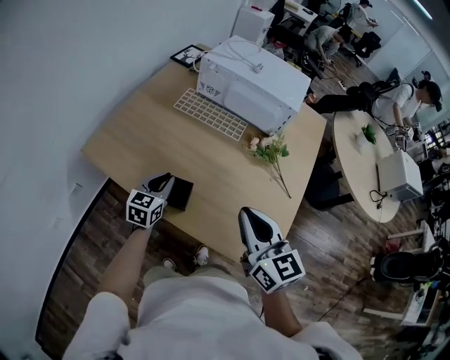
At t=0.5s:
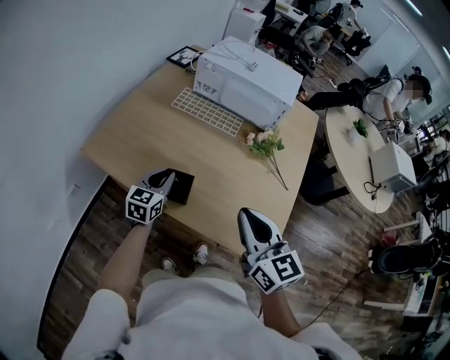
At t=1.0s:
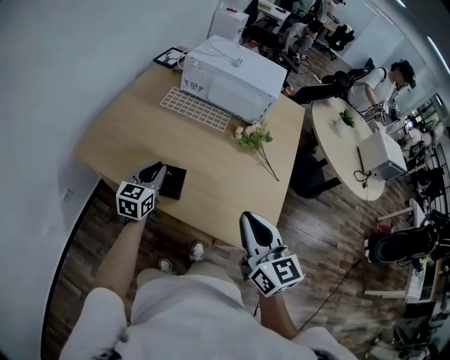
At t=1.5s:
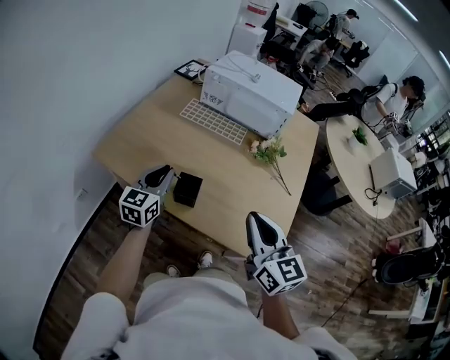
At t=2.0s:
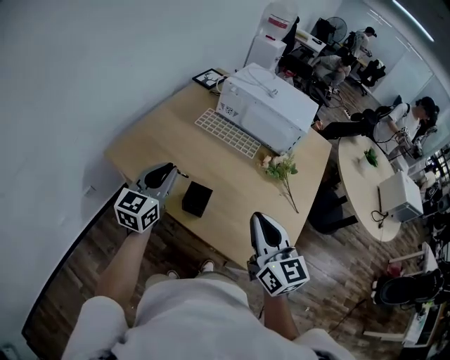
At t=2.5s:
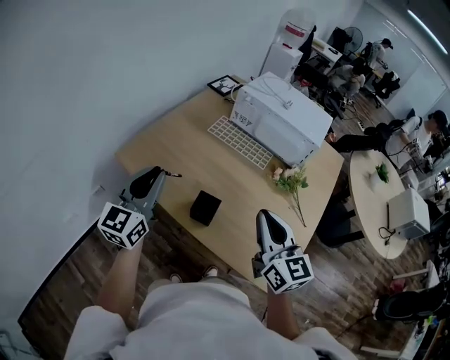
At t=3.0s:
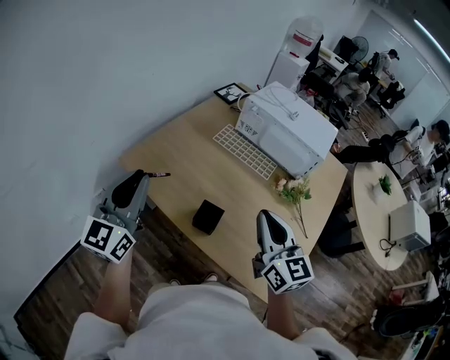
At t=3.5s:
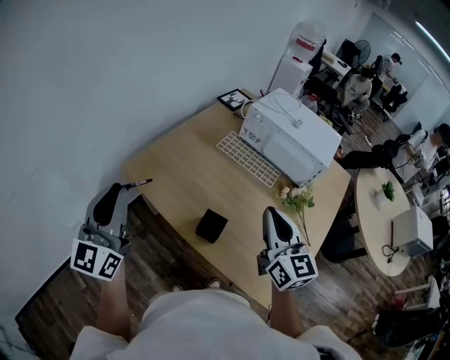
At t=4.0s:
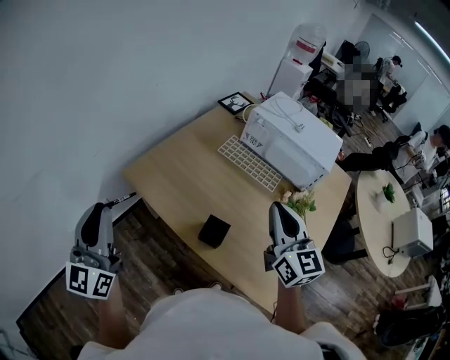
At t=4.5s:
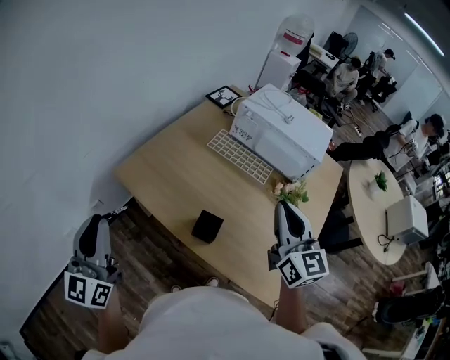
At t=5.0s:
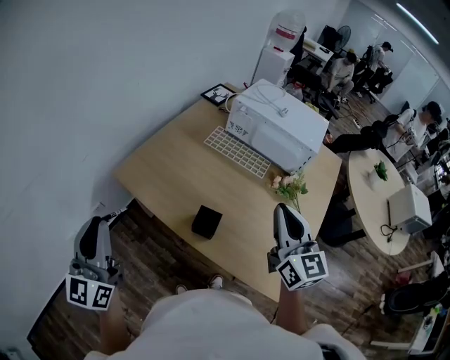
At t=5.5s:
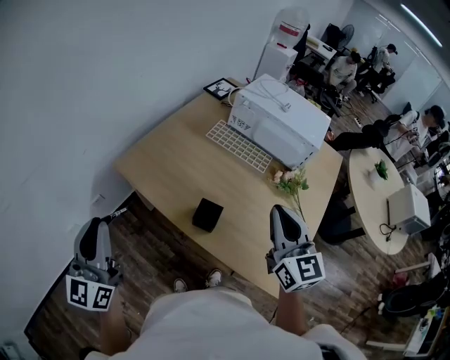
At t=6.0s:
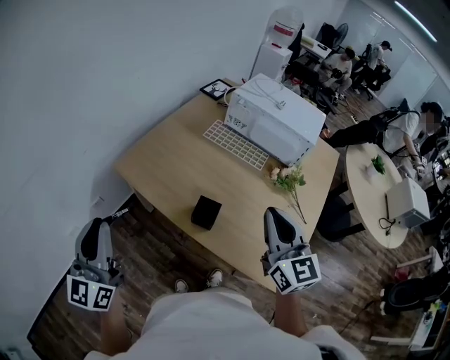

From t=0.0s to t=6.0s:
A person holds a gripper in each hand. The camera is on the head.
From t=0.0s to t=2.0s: The left gripper travels upward by approximately 15 cm, and turns by approximately 20 degrees.
From t=2.0s to t=4.0s: The left gripper travels to the left, upward and backward by about 25 cm, and changes its angle by about 30 degrees. Meanwhile the right gripper travels forward and upward by some 15 cm.
From t=4.0s to t=6.0s: The two grippers go about 10 cm backward.

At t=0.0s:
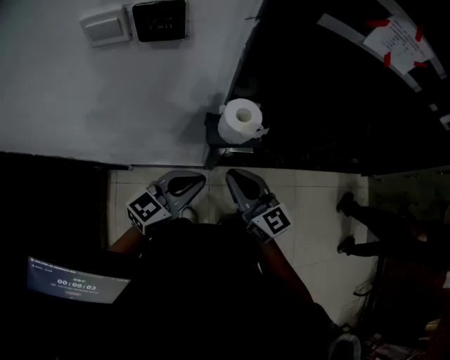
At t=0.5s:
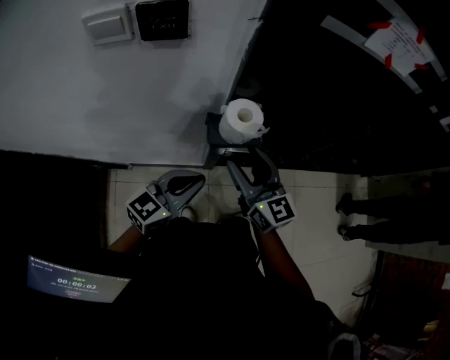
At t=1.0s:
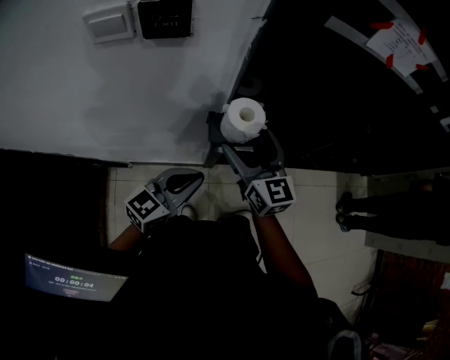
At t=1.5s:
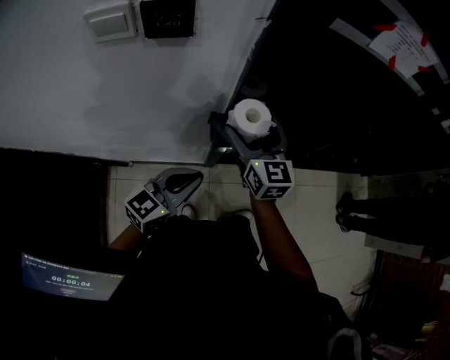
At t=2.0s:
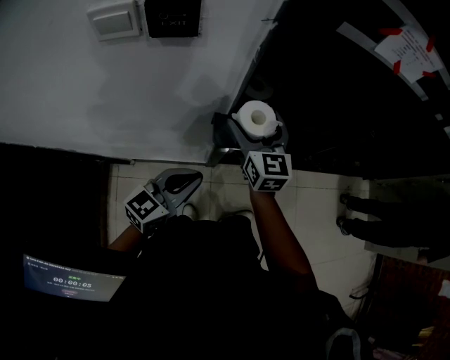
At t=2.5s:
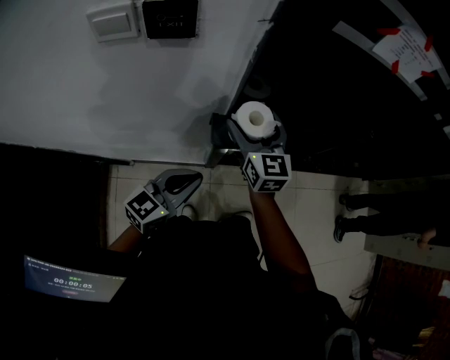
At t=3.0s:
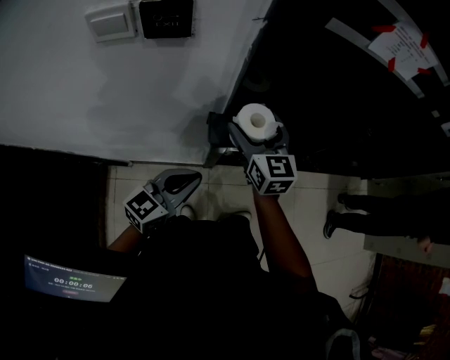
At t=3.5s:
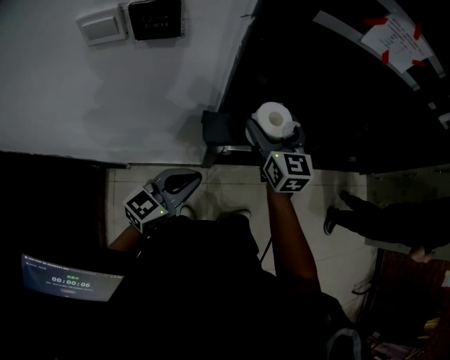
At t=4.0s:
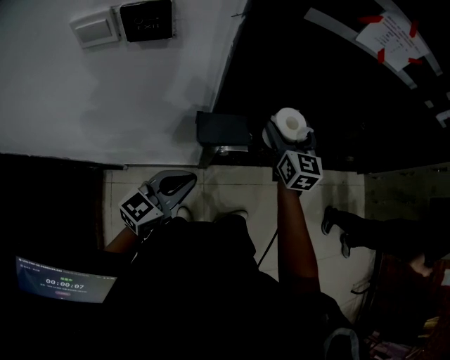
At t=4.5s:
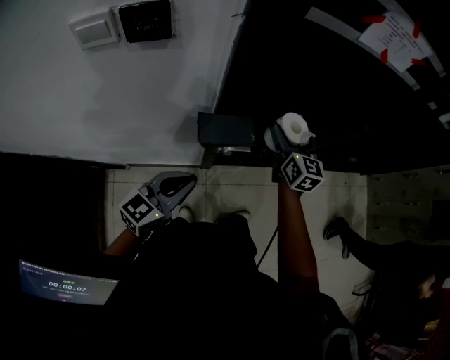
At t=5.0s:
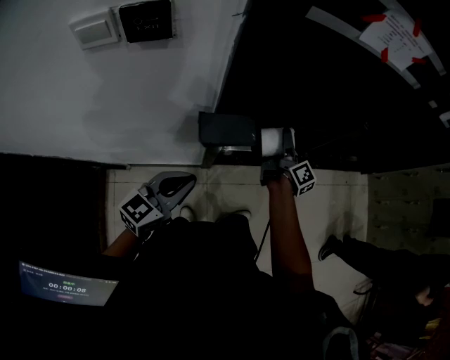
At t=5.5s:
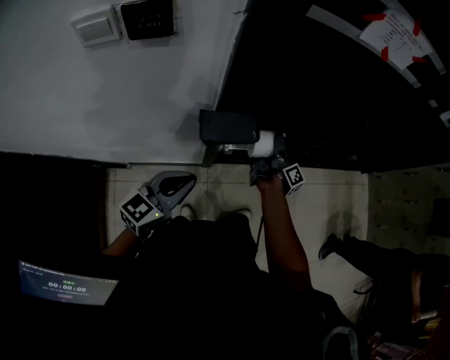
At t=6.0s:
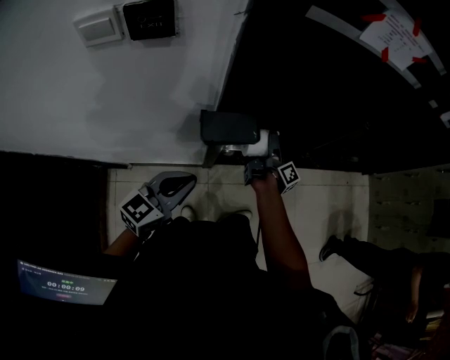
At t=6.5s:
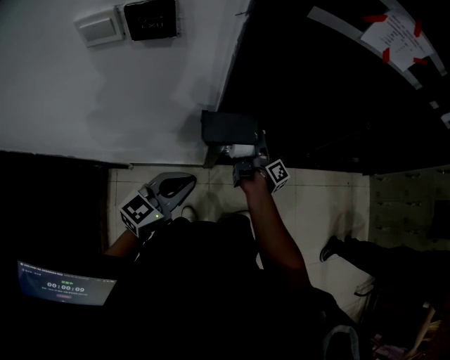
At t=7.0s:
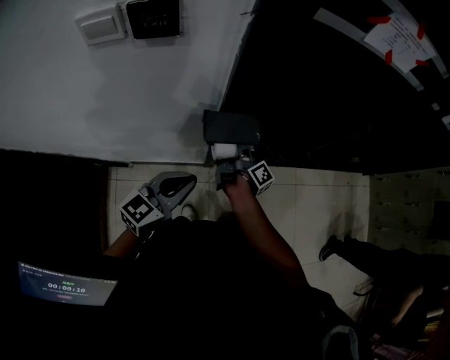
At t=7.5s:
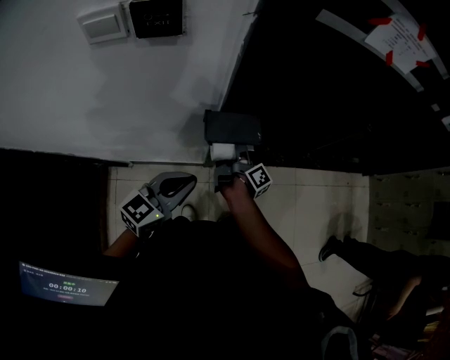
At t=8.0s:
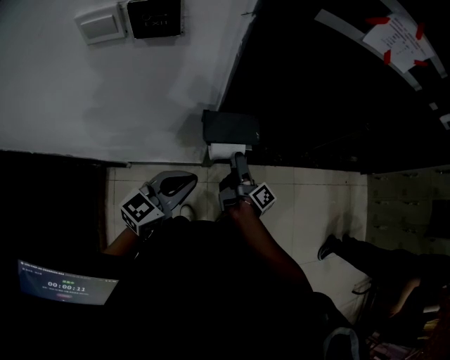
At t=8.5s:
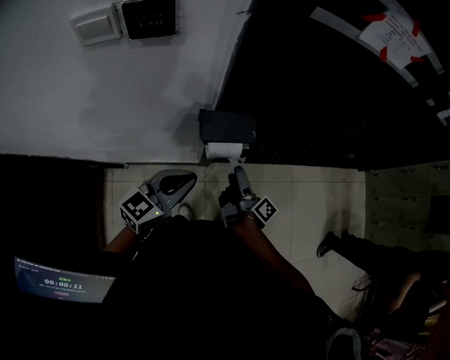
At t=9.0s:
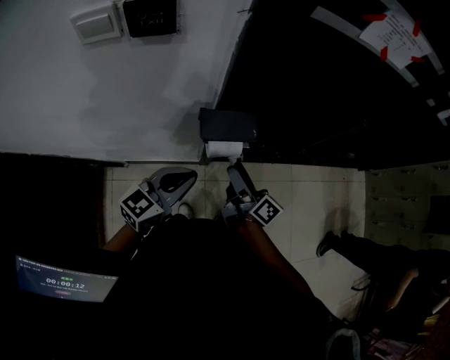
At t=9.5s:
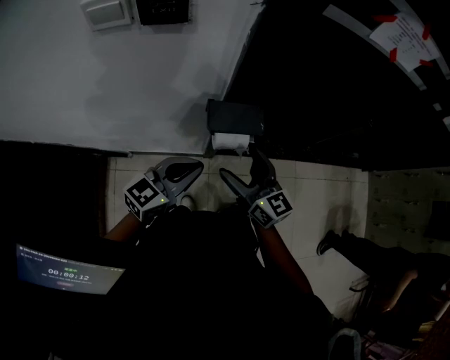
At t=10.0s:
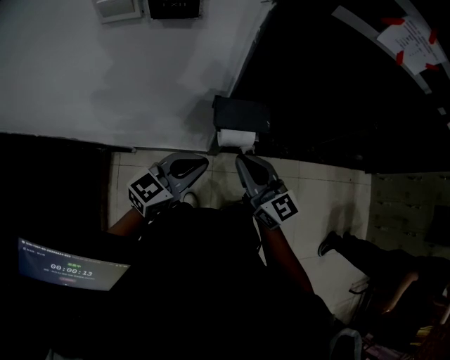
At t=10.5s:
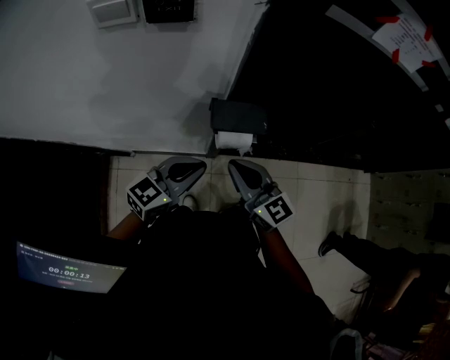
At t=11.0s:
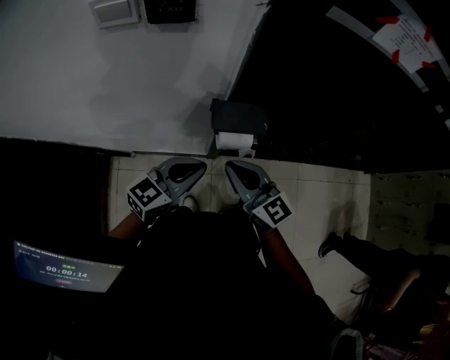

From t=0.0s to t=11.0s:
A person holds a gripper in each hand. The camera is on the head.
From t=0.0s to t=2.0s: The right gripper goes about 15 cm forward, swivels about 30 degrees, and opens its fingers.
From t=2.0s to t=3.5s: The right gripper shifts roughly 5 cm to the right.
From t=3.5s to t=5.5s: The right gripper travels downward and to the right by approximately 25 cm, and rotates around the line of its fingers by roughly 90 degrees, clockwise from behind.
From t=5.5s to t=7.5s: The right gripper is displaced to the left and backward by roughly 15 cm.
From t=7.5s to t=9.0s: The right gripper is displaced backward and upward by about 15 cm, and turns by roughly 30 degrees.
From t=9.0s to t=11.0s: The right gripper moves to the left and upward, some 5 cm, rolls counterclockwise, seen from behind, by about 50 degrees, and closes.

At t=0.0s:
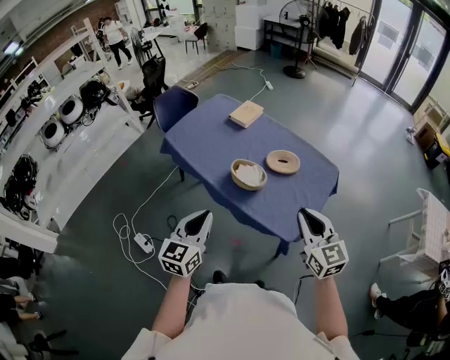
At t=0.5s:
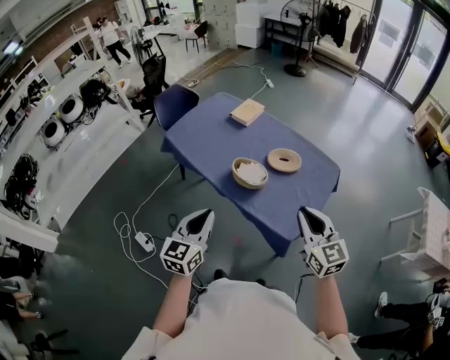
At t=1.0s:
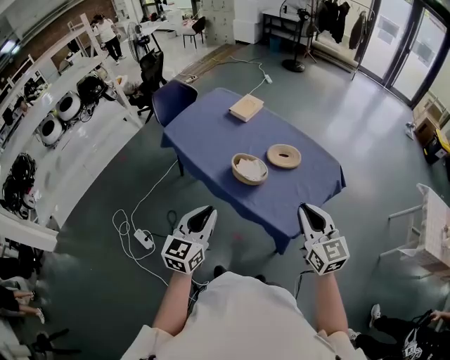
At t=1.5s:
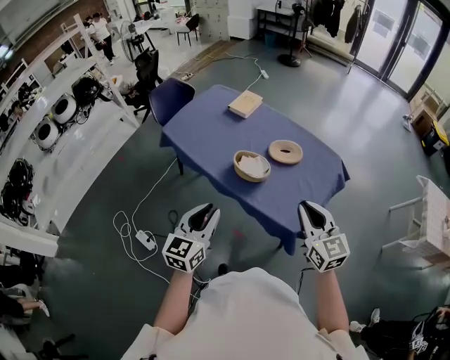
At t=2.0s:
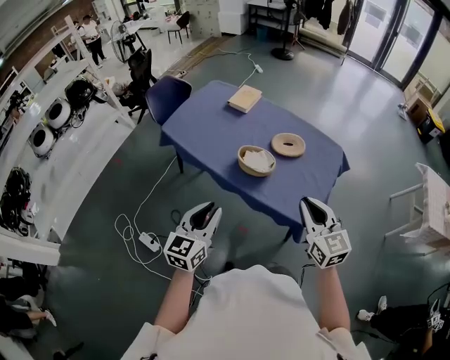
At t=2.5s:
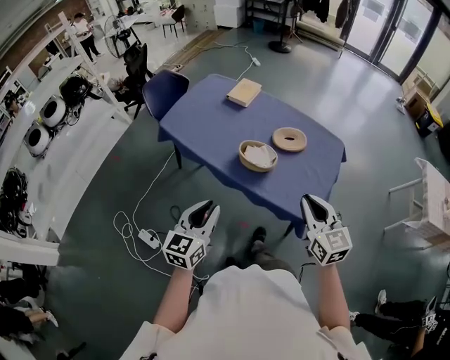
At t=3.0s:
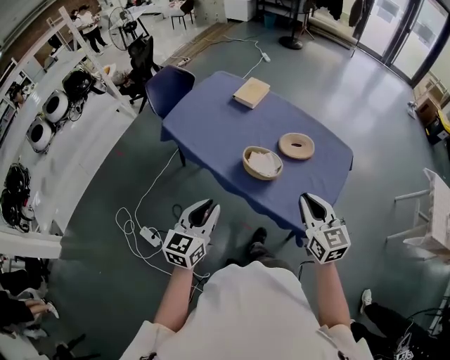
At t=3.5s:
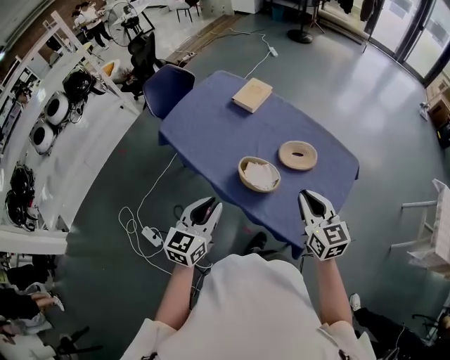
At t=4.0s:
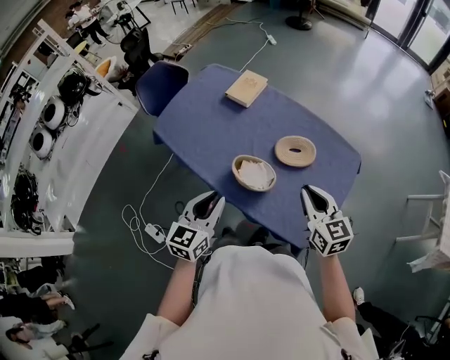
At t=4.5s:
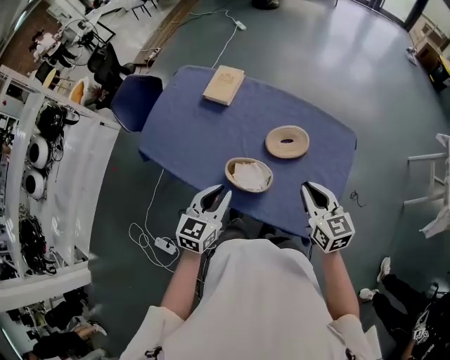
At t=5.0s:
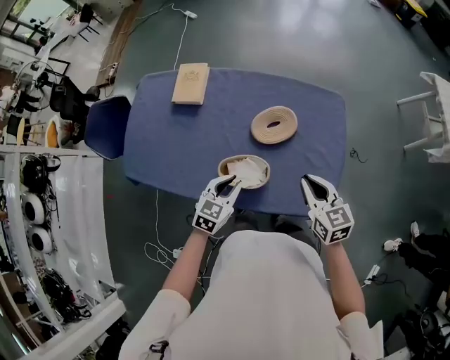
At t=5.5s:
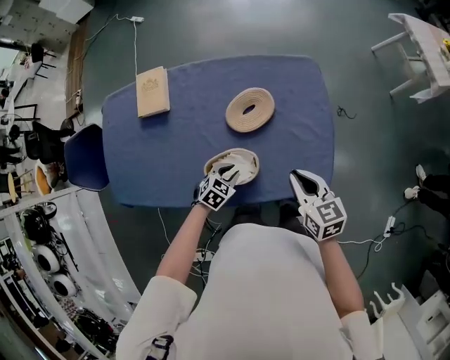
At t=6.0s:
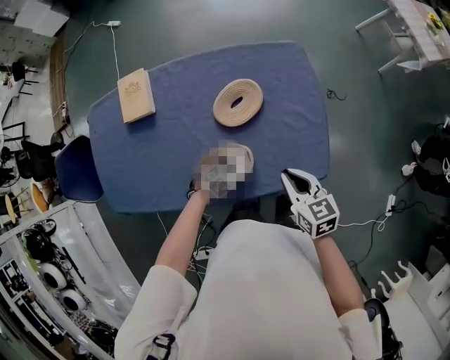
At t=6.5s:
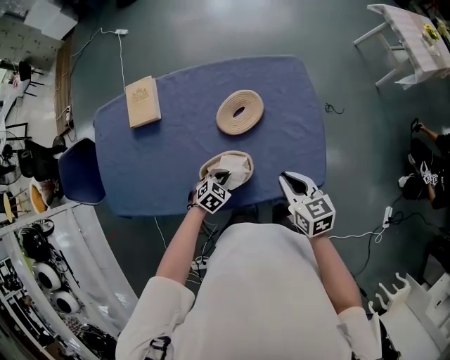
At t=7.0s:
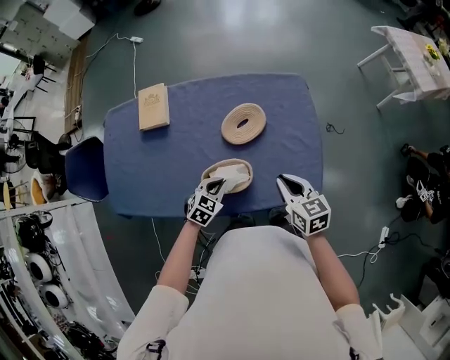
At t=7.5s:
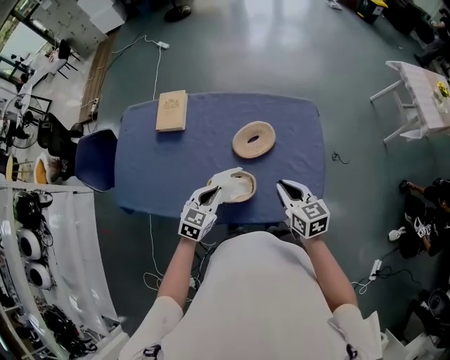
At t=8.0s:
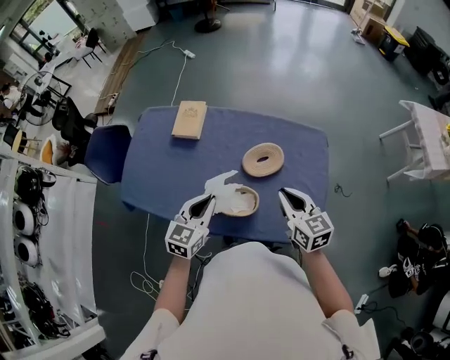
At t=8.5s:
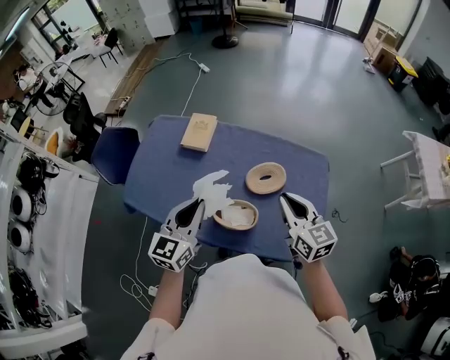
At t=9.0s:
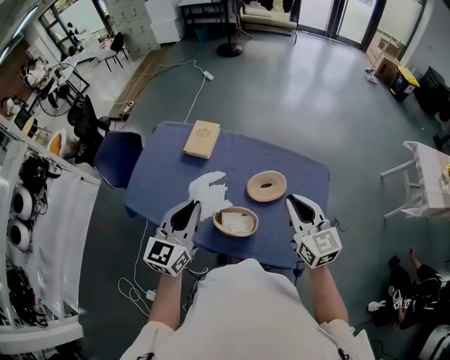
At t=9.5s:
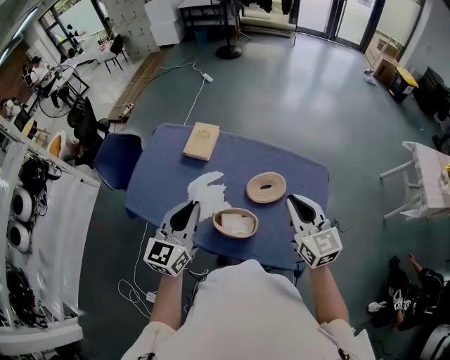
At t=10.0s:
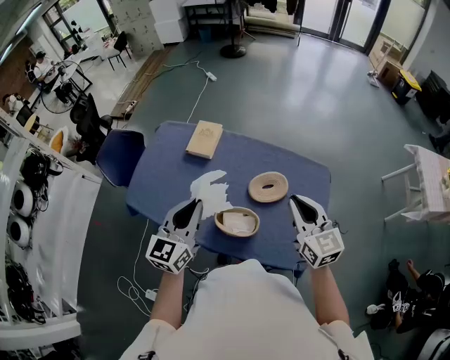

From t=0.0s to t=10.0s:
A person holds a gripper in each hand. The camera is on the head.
From t=0.0s to t=2.0s: The grippers both shift to the left by roughly 10 cm.
From t=2.0s to t=4.0s: The two grippers go some 25 cm forward.
From t=4.0s to t=6.0s: The left gripper shifts some 40 cm downward, and tips its fingers downward by approximately 50 degrees. The right gripper travels downward by approximately 15 cm, and rotates about 40 degrees.
From t=6.0s to t=8.0s: The left gripper shifts approximately 35 cm upward, and tilts its fingers approximately 50 degrees upward. Meanwhile the right gripper travels upward by some 15 cm, and changes its angle by approximately 20 degrees.
From t=8.0s to t=10.0s: The left gripper shifts roughly 15 cm upward and to the left, and rotates approximately 20 degrees, while the right gripper heads upward, covering roughly 10 cm.
